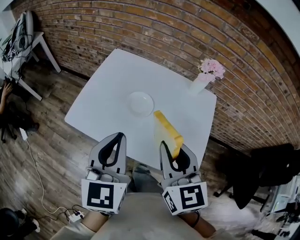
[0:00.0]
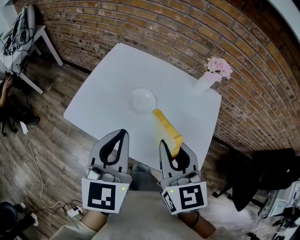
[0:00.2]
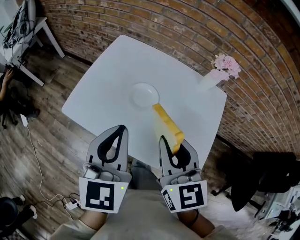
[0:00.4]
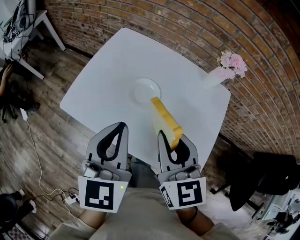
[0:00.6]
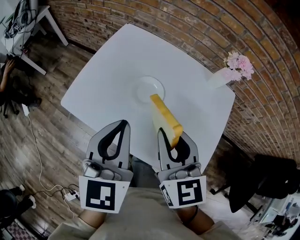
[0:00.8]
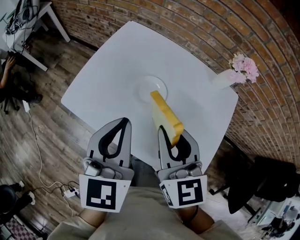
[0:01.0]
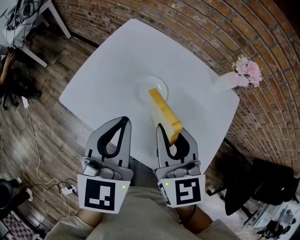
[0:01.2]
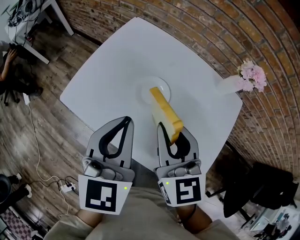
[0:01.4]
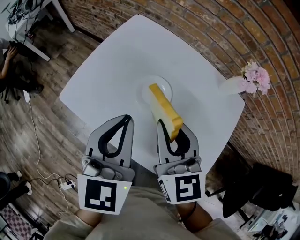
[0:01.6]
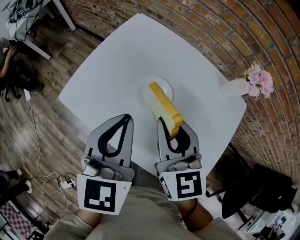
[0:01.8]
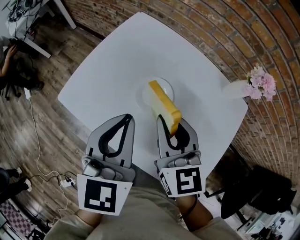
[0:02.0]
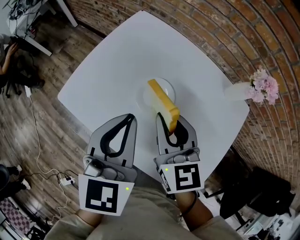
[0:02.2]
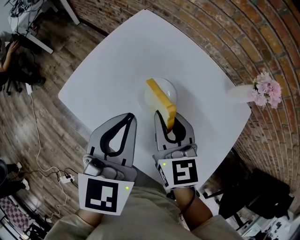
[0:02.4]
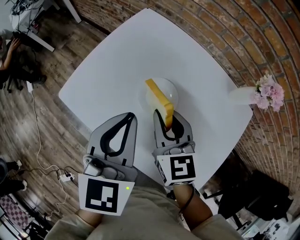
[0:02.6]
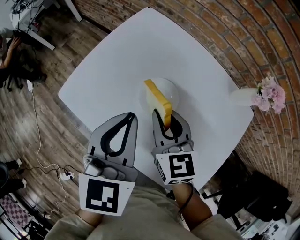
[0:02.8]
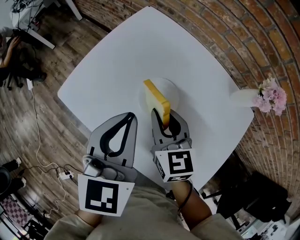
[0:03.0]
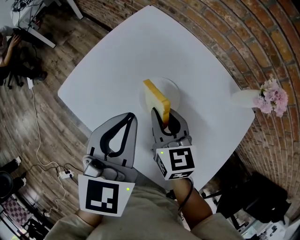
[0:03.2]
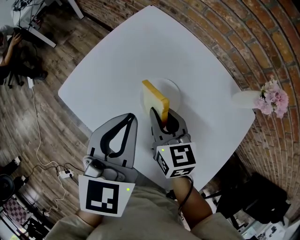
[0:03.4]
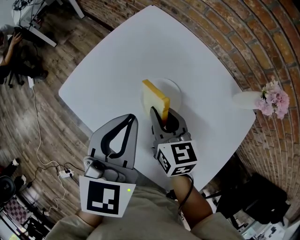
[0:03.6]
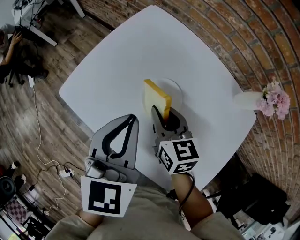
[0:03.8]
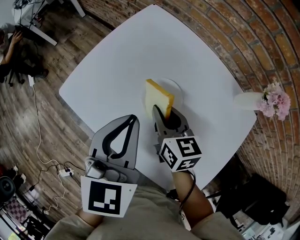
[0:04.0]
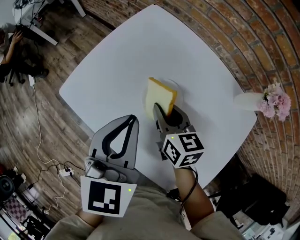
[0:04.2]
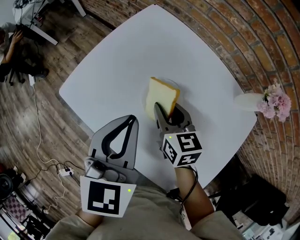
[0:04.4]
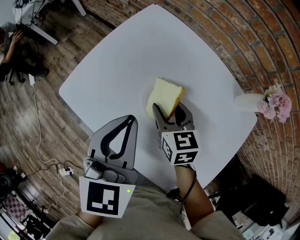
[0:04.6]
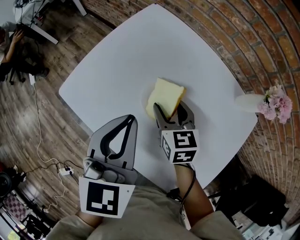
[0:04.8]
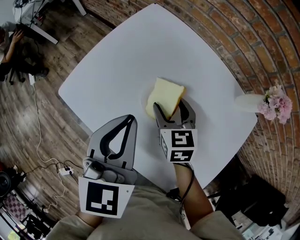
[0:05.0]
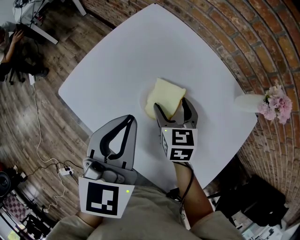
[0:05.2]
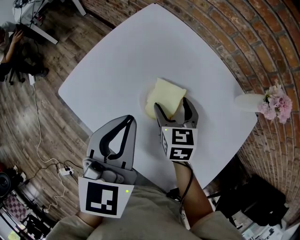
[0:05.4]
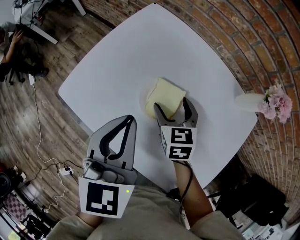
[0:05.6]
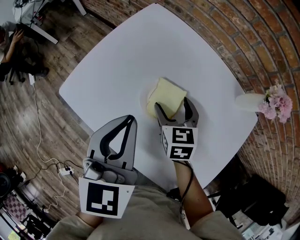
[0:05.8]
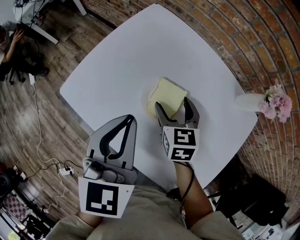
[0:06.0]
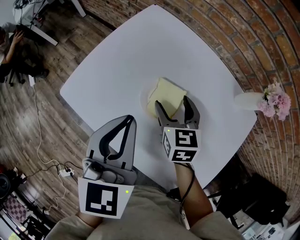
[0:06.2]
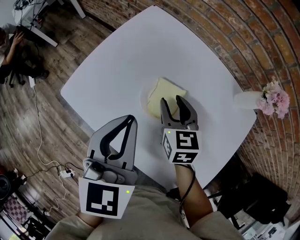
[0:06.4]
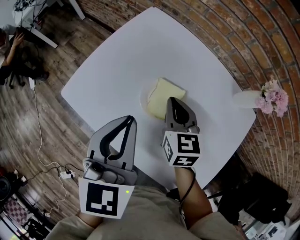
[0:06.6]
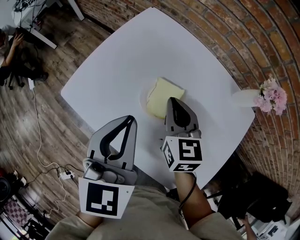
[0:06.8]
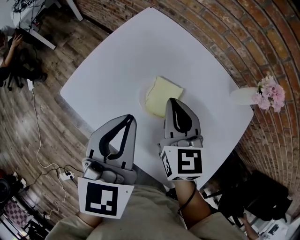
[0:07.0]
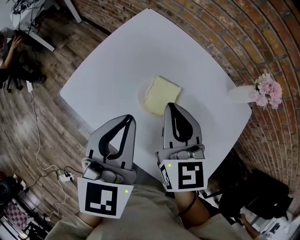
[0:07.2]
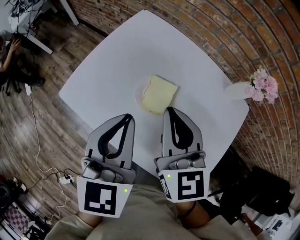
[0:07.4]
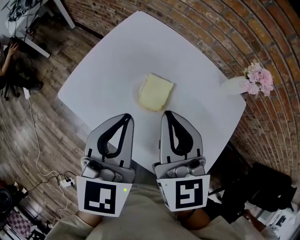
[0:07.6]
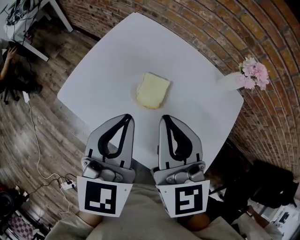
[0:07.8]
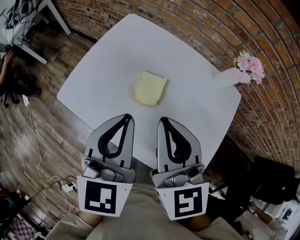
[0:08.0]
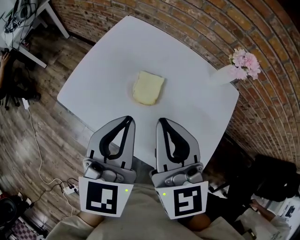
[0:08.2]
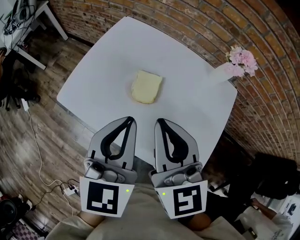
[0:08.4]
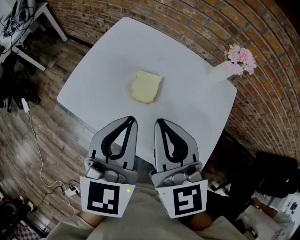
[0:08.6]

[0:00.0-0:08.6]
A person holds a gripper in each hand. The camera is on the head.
0.0 to 1.4 s: Both grippers travel together forward and downward, roughly 10 cm.
1.4 to 2.8 s: The left gripper moves forward, some 5 cm. The right gripper goes some 10 cm downward and forward.
2.8 to 4.4 s: The right gripper heads downward, covering about 5 cm.
4.4 to 5.8 s: The right gripper opens its fingers.
5.8 to 7.2 s: The right gripper heads upward, covering some 15 cm, turns by some 20 degrees, and closes.
7.2 to 8.6 s: The left gripper heads backward, covering some 5 cm. The right gripper goes approximately 15 cm backward and upward.

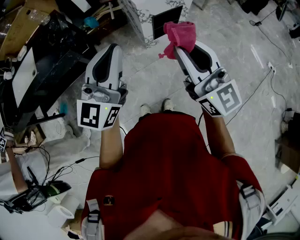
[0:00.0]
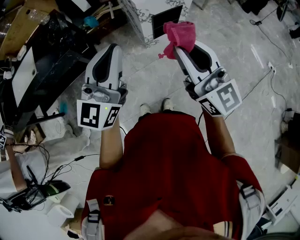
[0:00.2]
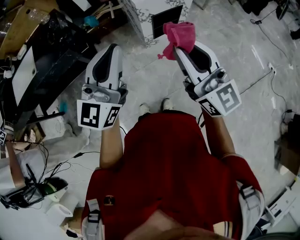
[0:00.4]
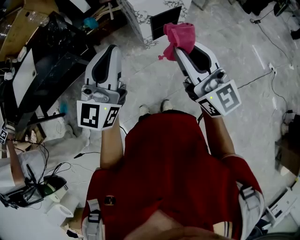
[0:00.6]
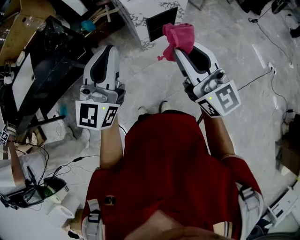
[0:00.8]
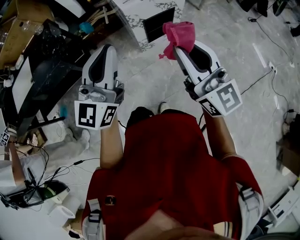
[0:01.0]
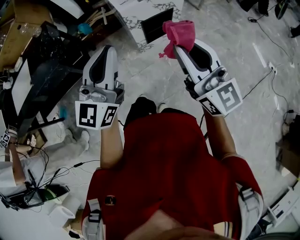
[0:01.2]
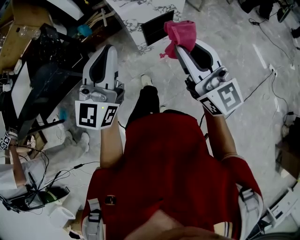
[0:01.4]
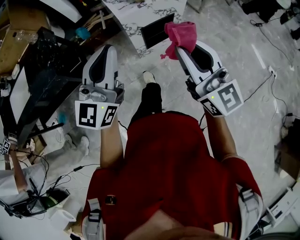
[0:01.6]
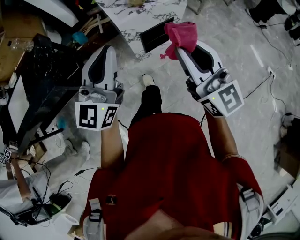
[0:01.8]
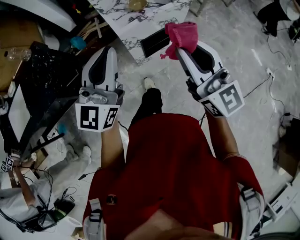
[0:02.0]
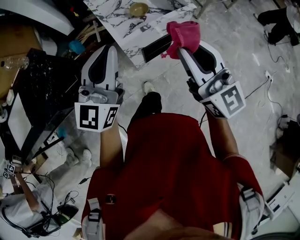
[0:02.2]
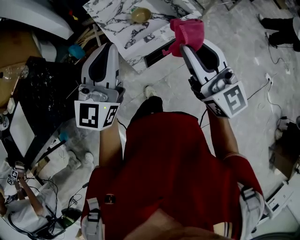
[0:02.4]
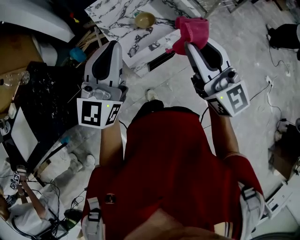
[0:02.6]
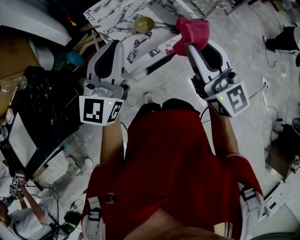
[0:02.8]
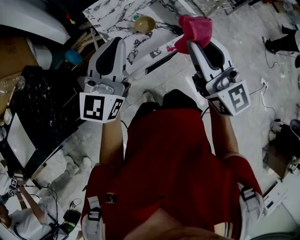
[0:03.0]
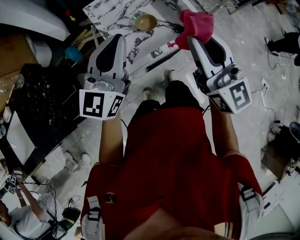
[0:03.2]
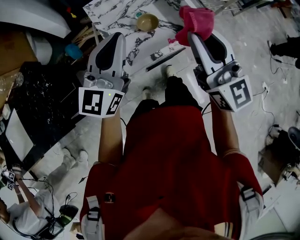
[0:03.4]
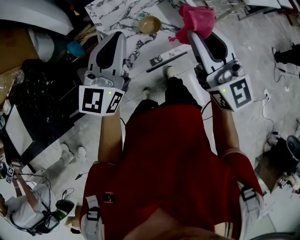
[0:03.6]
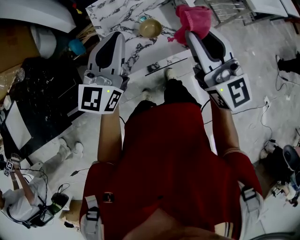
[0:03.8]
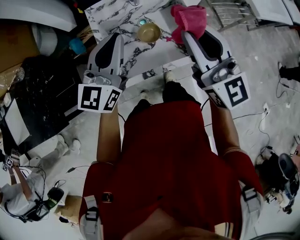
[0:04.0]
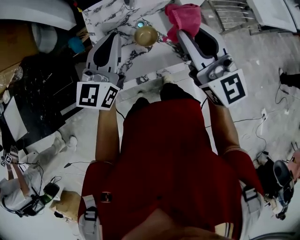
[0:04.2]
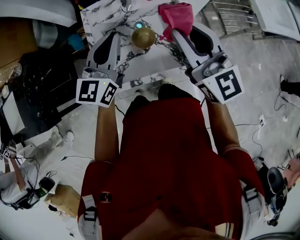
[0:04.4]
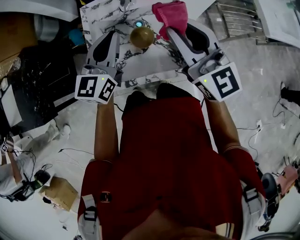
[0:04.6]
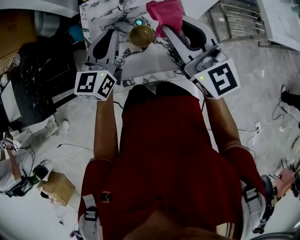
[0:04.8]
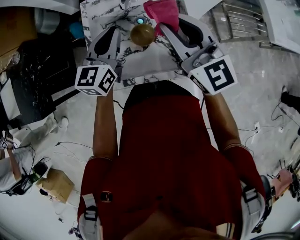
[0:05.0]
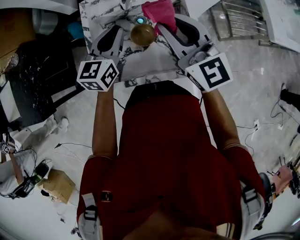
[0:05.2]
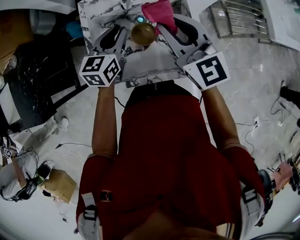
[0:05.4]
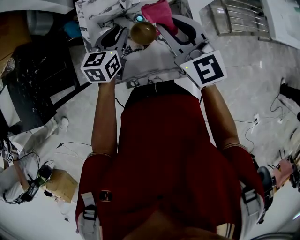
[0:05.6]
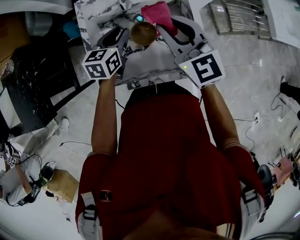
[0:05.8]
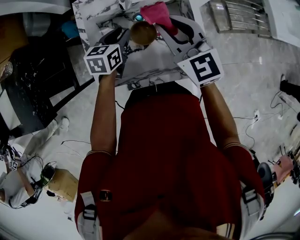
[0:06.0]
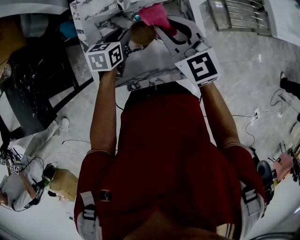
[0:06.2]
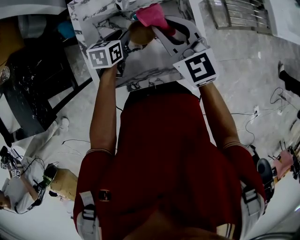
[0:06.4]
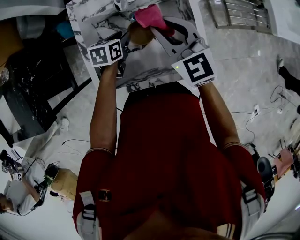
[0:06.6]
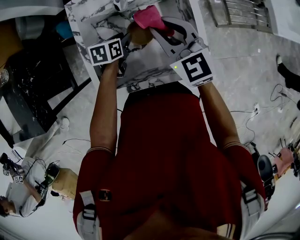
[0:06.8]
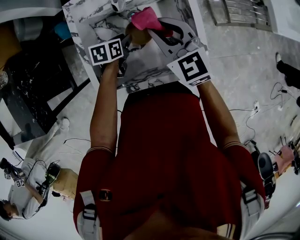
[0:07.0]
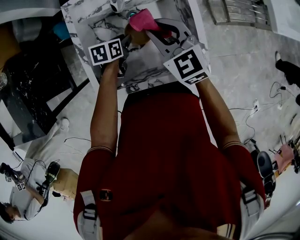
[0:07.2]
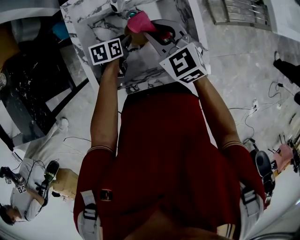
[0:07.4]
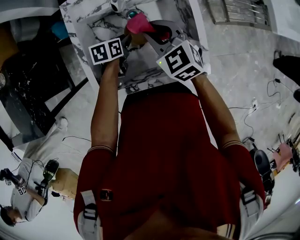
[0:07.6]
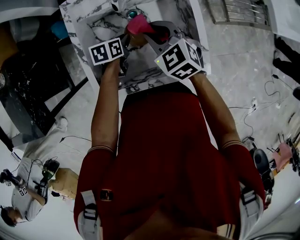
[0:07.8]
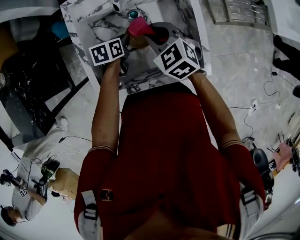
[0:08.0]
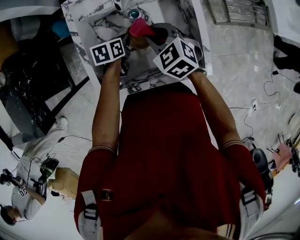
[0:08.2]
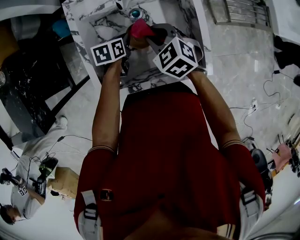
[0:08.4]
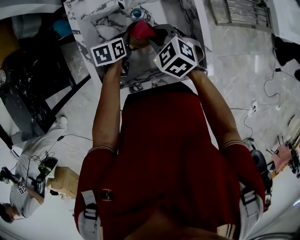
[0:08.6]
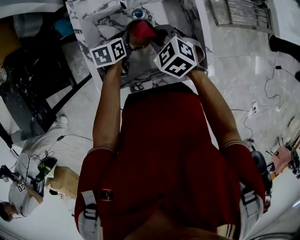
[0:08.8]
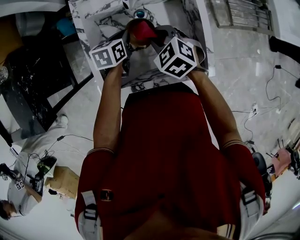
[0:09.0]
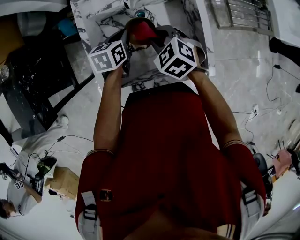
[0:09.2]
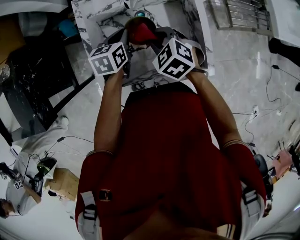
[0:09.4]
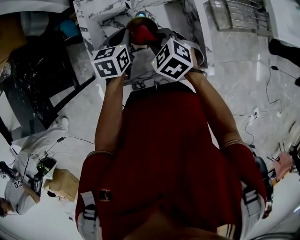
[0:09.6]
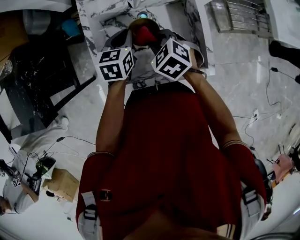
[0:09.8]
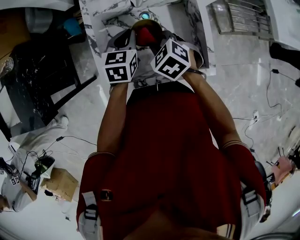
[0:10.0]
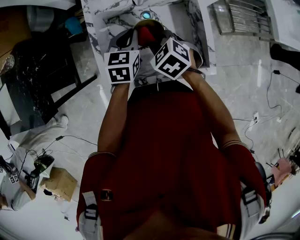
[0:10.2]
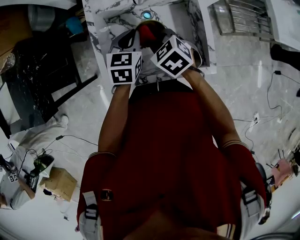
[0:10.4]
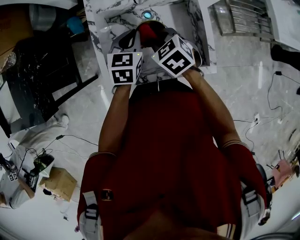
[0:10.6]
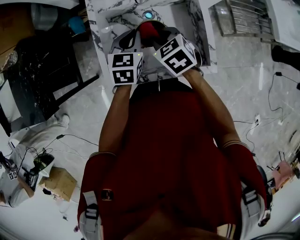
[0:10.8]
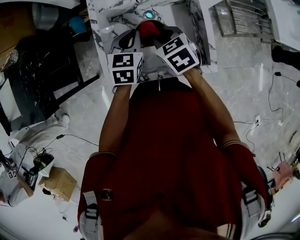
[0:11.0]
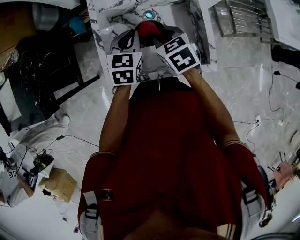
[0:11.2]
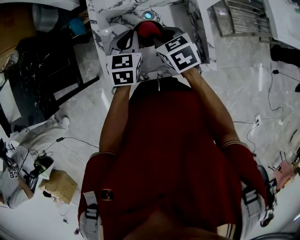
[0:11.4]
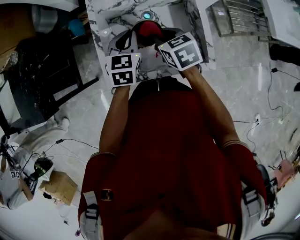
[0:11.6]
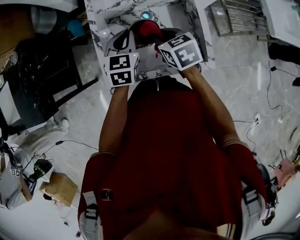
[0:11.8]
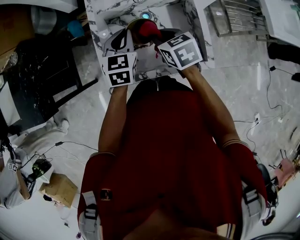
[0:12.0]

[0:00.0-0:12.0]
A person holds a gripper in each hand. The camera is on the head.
0.0 to 1.6 s: The right gripper shifts some 15 cm to the right and forward; the left gripper travels forward and to the right by about 15 cm.
1.6 to 3.0 s: Both grippers move forward, about 35 cm.
3.0 to 4.4 s: The right gripper goes roughly 20 cm forward, and rotates some 20 degrees. Meanwhile the left gripper travels forward, to the right and downward by roughly 20 cm, and changes its angle by approximately 20 degrees.
4.4 to 6.0 s: The right gripper travels downward and forward by about 15 cm, and changes its angle by roughly 20 degrees; the left gripper goes some 20 cm downward, tips its fingers downward by some 30 degrees, and opens.
6.0 to 7.6 s: Both grippers travel together downward, approximately 10 cm. The left gripper turns by roughly 30 degrees. The right gripper swivels about 20 degrees.
7.6 to 9.0 s: The left gripper travels upward by about 5 cm; the right gripper is displaced downward by approximately 5 cm.
9.0 to 10.4 s: The left gripper shifts about 10 cm upward, and rotates about 30 degrees.
10.4 to 12.0 s: The right gripper rotates roughly 20 degrees.

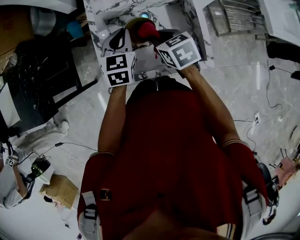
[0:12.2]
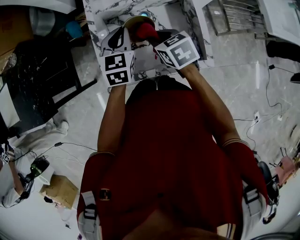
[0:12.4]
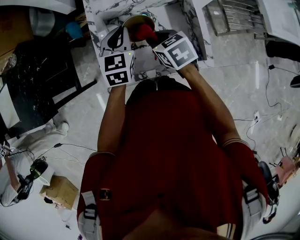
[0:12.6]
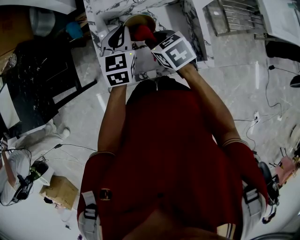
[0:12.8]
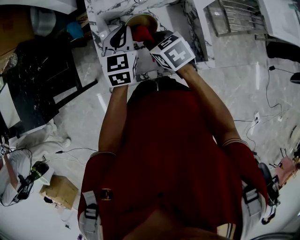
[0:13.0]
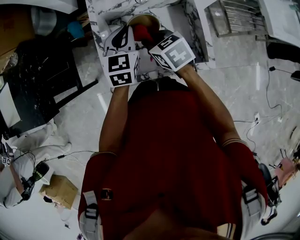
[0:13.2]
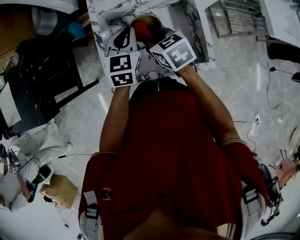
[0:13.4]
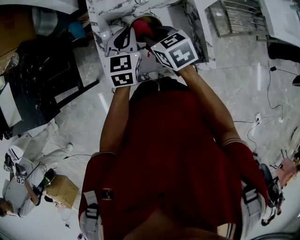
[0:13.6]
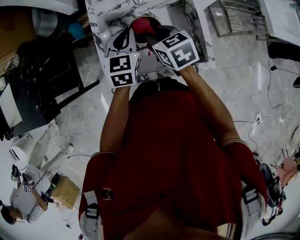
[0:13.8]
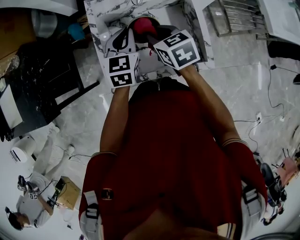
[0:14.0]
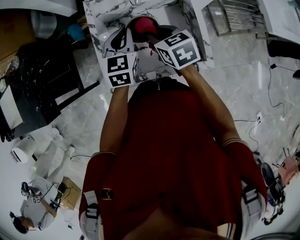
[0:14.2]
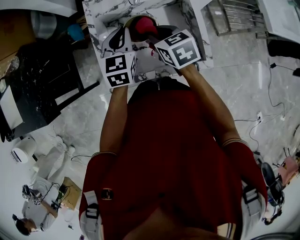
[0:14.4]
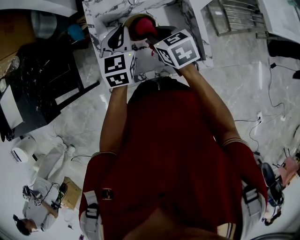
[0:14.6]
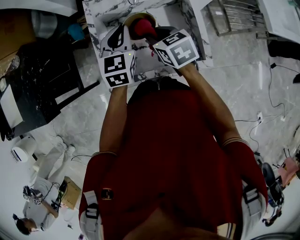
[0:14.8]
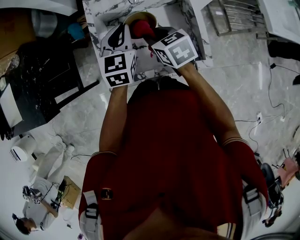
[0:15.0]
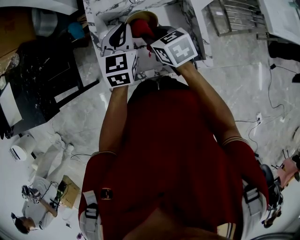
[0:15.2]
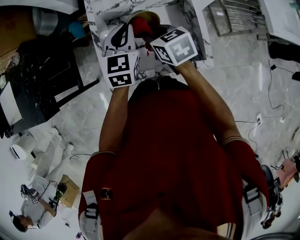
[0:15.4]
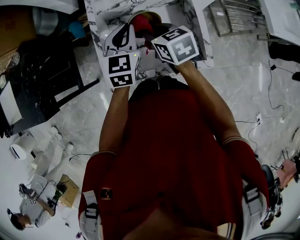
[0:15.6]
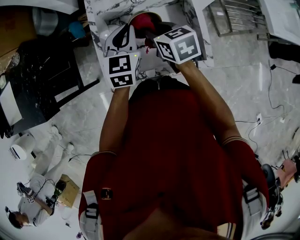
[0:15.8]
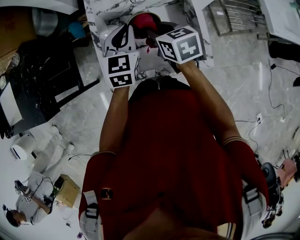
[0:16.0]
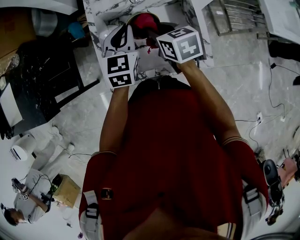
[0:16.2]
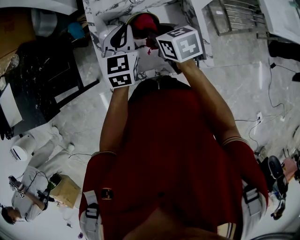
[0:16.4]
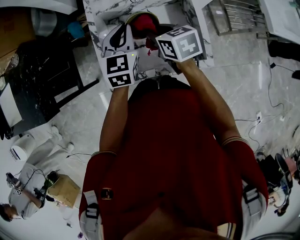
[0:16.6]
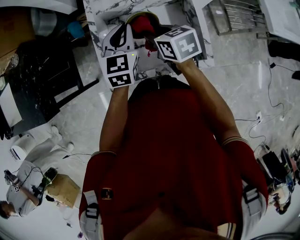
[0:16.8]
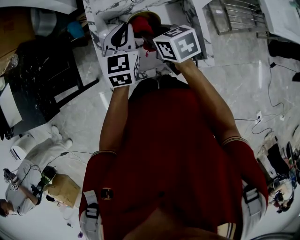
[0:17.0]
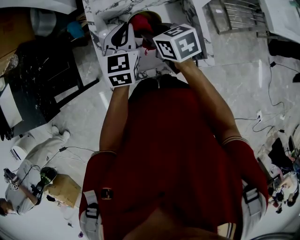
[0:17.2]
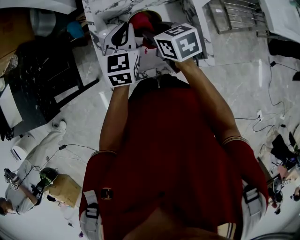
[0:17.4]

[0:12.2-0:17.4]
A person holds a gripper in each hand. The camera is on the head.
12.2 to 17.4 s: There are only small adjustments of the grippers.
